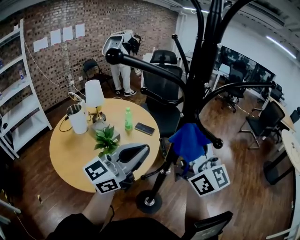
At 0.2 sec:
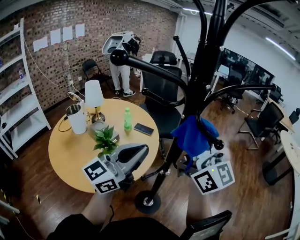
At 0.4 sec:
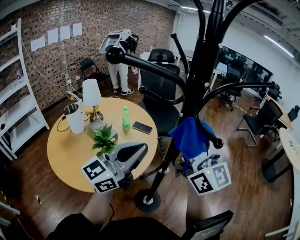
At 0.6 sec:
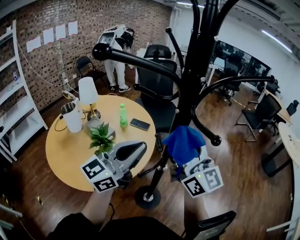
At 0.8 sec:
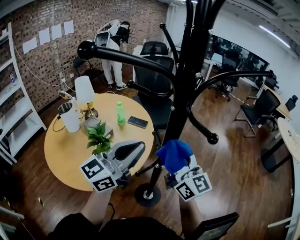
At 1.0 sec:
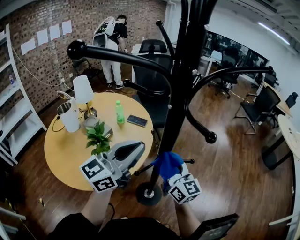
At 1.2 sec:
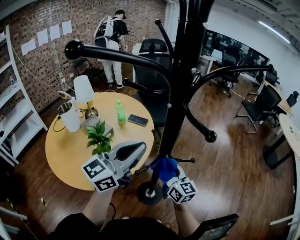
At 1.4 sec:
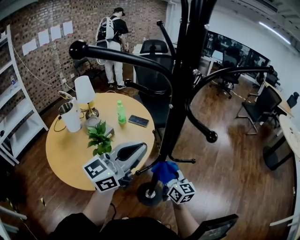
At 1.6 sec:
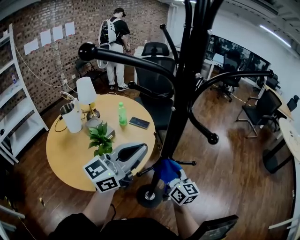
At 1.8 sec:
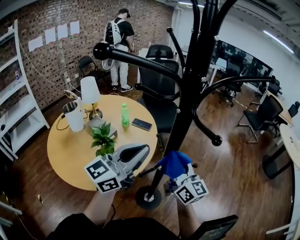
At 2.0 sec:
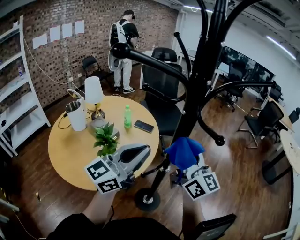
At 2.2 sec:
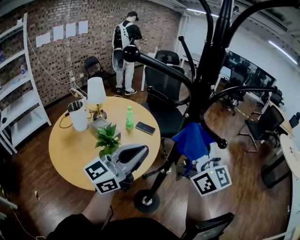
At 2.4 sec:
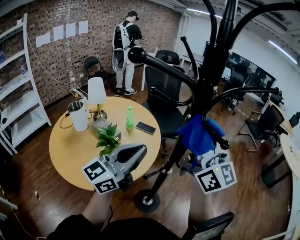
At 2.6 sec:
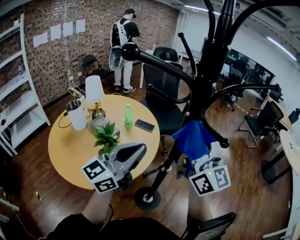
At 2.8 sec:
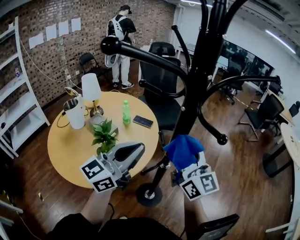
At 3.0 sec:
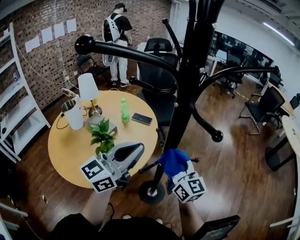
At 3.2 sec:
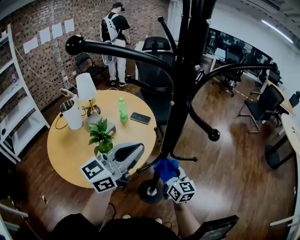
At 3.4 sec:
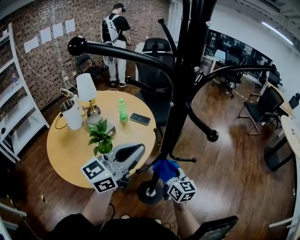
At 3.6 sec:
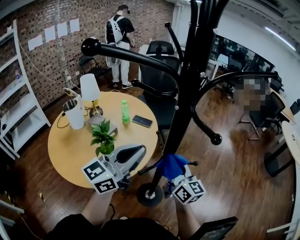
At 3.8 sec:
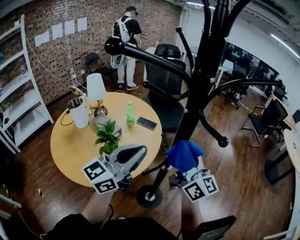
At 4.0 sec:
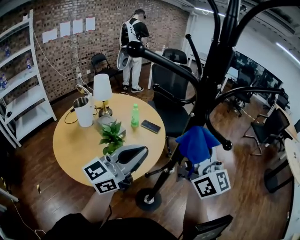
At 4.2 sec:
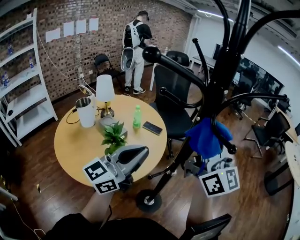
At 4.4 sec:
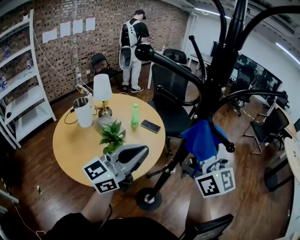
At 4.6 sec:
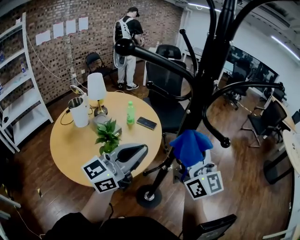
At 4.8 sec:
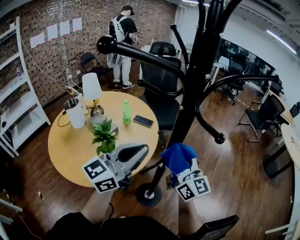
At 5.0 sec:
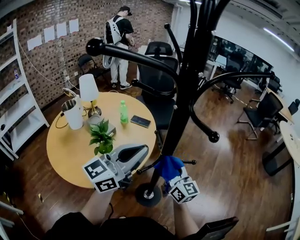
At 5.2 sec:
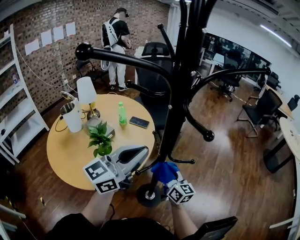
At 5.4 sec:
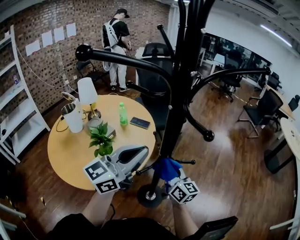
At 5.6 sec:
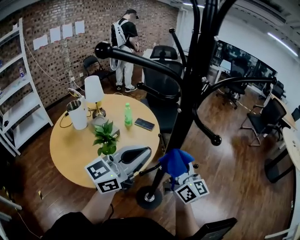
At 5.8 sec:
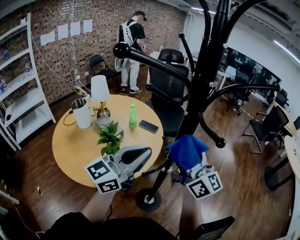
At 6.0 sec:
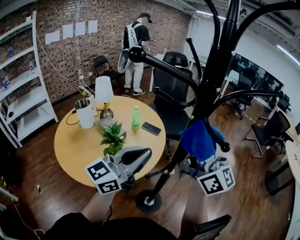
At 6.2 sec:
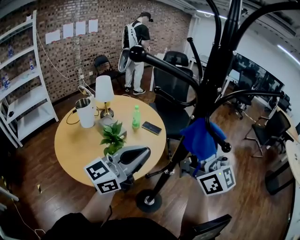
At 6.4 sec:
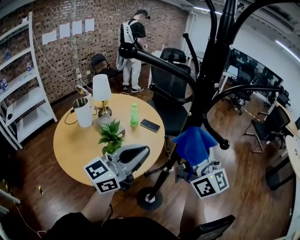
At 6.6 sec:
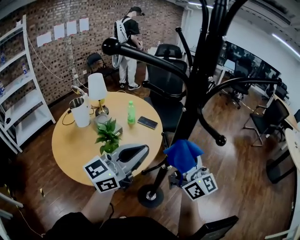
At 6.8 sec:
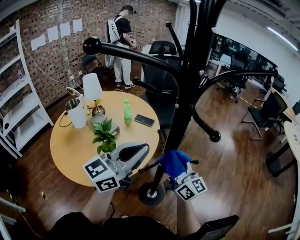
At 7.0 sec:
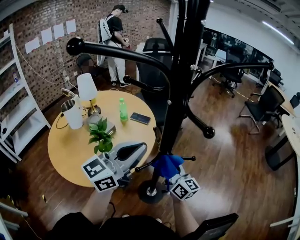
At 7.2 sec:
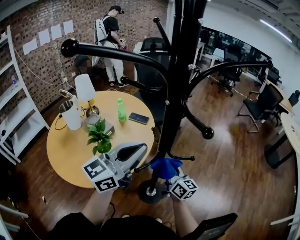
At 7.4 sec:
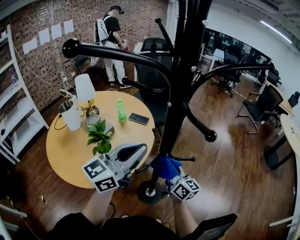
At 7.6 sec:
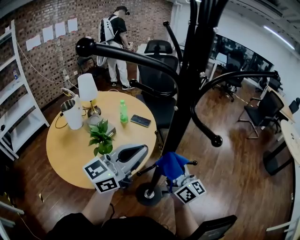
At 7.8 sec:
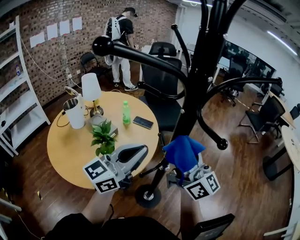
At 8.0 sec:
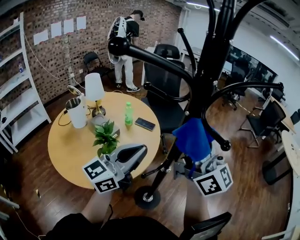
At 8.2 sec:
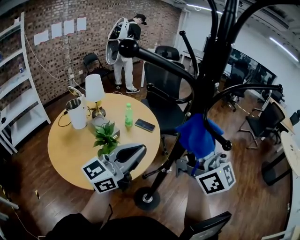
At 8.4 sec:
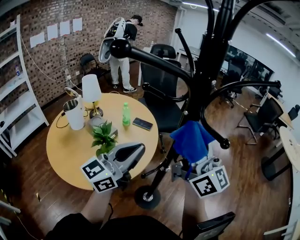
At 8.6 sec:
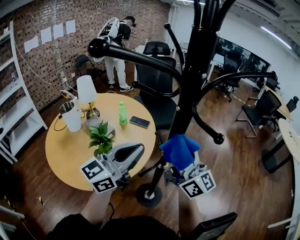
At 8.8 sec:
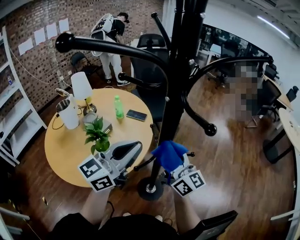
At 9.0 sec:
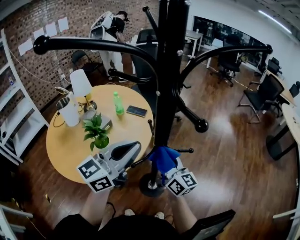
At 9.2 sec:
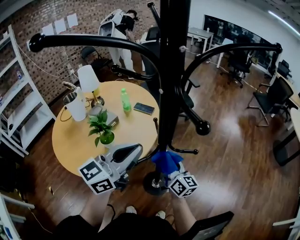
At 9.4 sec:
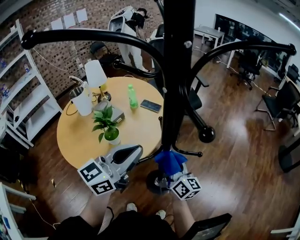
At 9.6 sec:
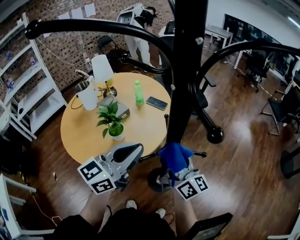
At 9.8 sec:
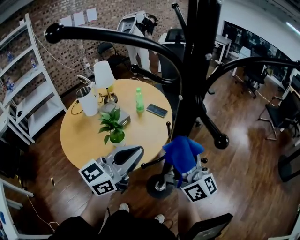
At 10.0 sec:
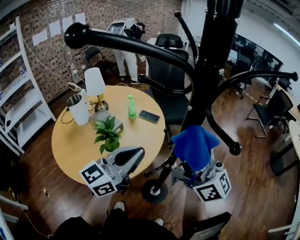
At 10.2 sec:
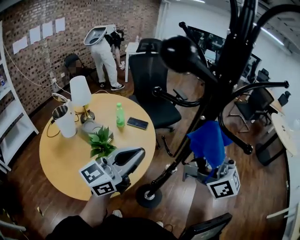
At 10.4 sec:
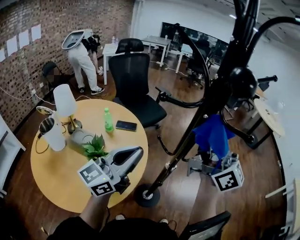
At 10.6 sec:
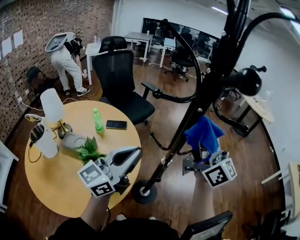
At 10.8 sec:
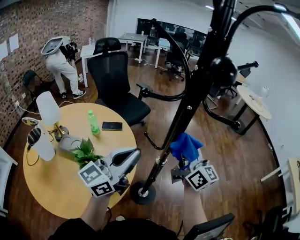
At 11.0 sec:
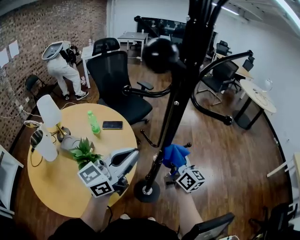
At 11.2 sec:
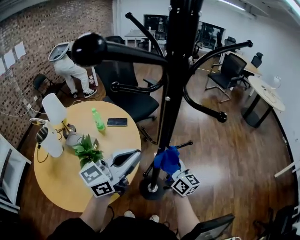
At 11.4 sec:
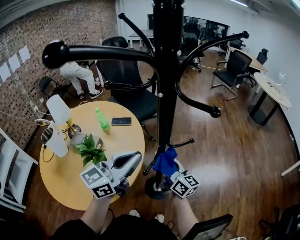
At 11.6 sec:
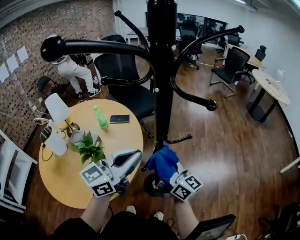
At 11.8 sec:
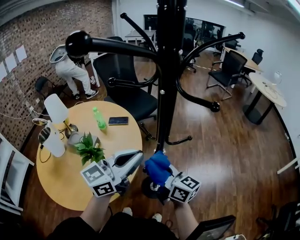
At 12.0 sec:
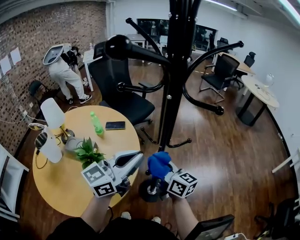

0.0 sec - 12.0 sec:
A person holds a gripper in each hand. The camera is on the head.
0.0 sec - 1.6 sec: The right gripper heads downward, covering about 25 cm, and turns by about 30 degrees.
1.6 sec - 3.0 sec: The right gripper goes upward and returns, about 30 cm each way.
3.0 sec - 4.4 sec: The right gripper travels upward by some 20 cm, and changes its angle by roughly 20 degrees.
4.4 sec - 6.0 sec: The right gripper reaches some 35 cm downward, then returns.
6.0 sec - 7.6 sec: The right gripper goes roughly 20 cm downward, and swivels about 20 degrees.
7.6 sec - 9.0 sec: The right gripper travels upward and back again, roughly 20 cm each way.
9.0 sec - 10.4 sec: The left gripper shifts approximately 10 cm to the left, while the right gripper moves upward, approximately 30 cm, and changes its angle by some 30 degrees.
10.4 sec - 12.0 sec: The right gripper heads downward, covering approximately 25 cm, and angles its fingers downward, by approximately 40 degrees, while the left gripper moves to the right, approximately 5 cm.

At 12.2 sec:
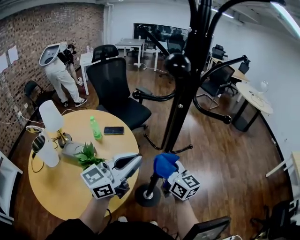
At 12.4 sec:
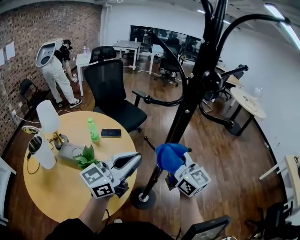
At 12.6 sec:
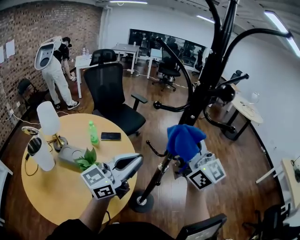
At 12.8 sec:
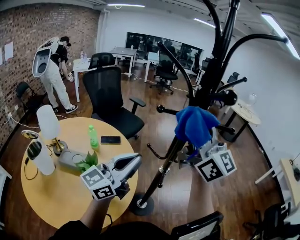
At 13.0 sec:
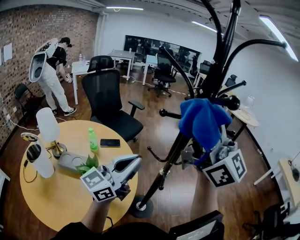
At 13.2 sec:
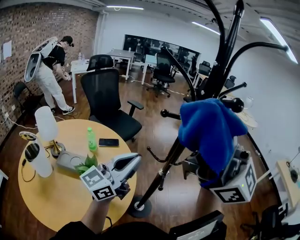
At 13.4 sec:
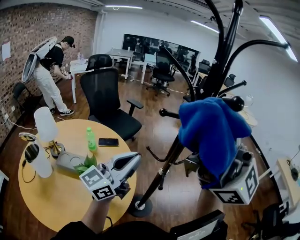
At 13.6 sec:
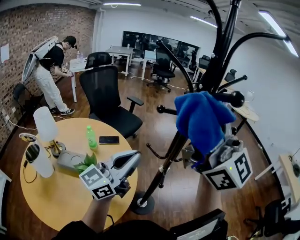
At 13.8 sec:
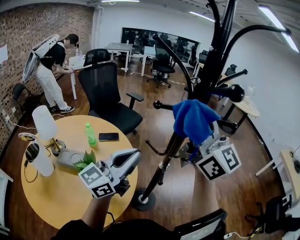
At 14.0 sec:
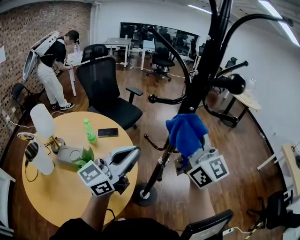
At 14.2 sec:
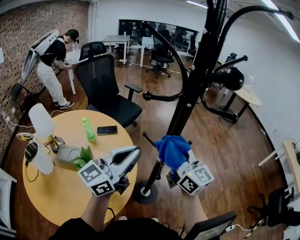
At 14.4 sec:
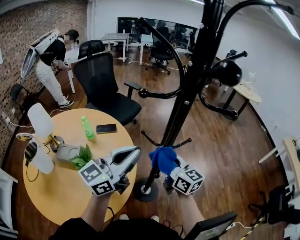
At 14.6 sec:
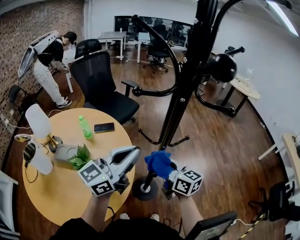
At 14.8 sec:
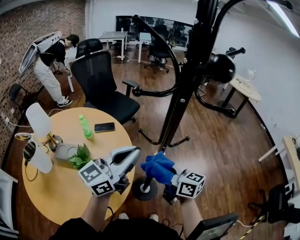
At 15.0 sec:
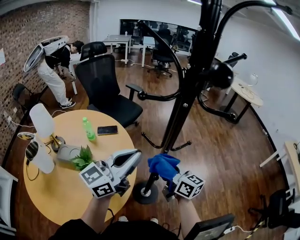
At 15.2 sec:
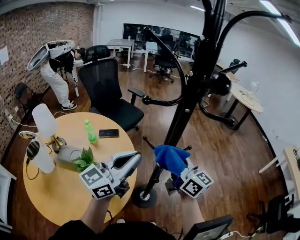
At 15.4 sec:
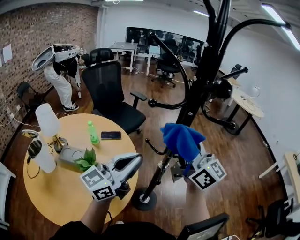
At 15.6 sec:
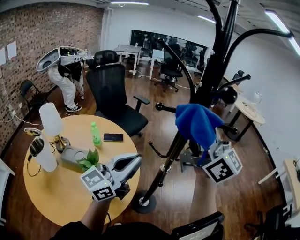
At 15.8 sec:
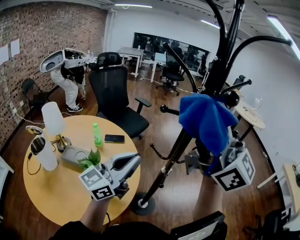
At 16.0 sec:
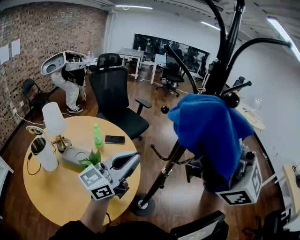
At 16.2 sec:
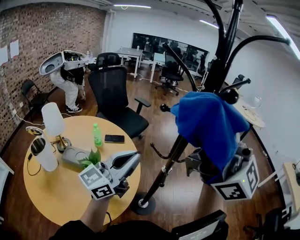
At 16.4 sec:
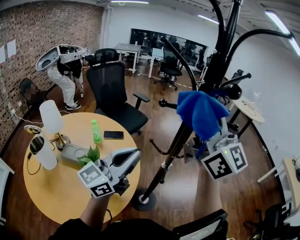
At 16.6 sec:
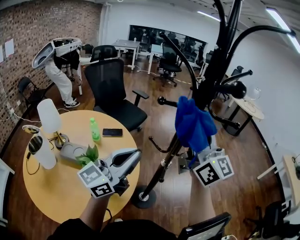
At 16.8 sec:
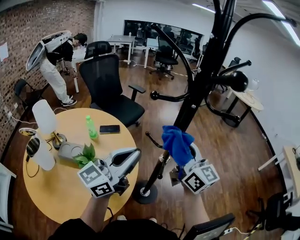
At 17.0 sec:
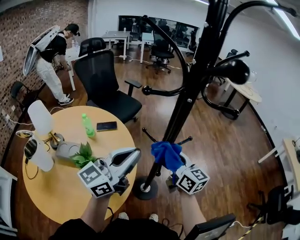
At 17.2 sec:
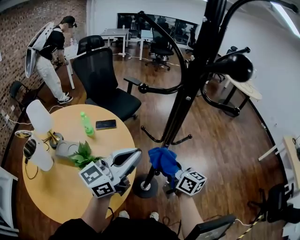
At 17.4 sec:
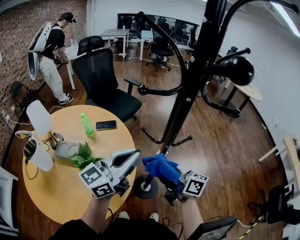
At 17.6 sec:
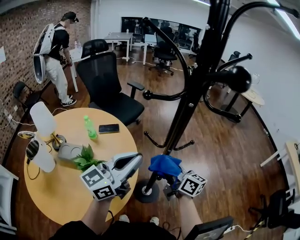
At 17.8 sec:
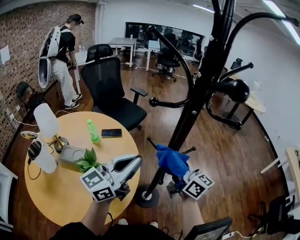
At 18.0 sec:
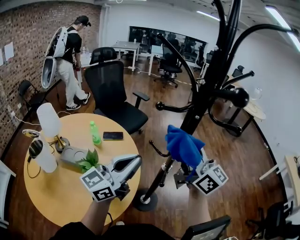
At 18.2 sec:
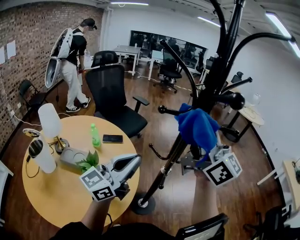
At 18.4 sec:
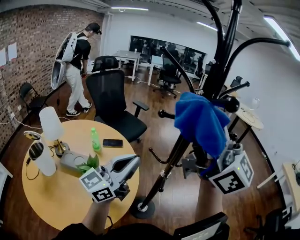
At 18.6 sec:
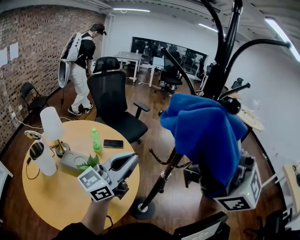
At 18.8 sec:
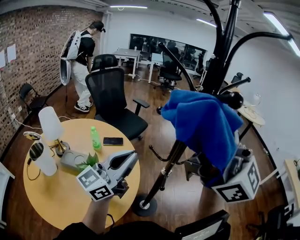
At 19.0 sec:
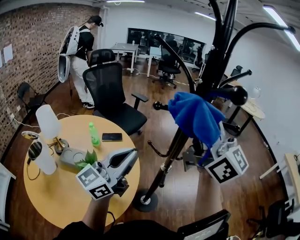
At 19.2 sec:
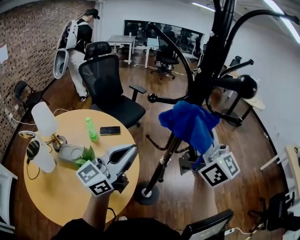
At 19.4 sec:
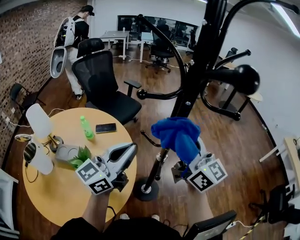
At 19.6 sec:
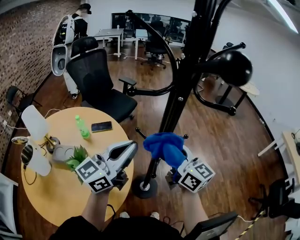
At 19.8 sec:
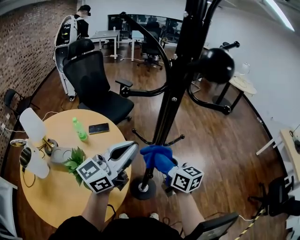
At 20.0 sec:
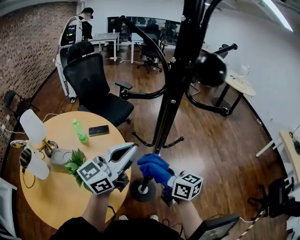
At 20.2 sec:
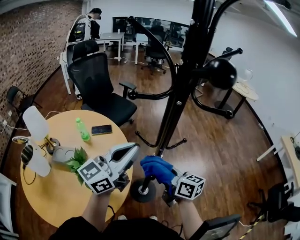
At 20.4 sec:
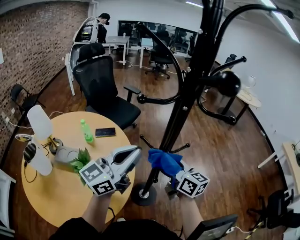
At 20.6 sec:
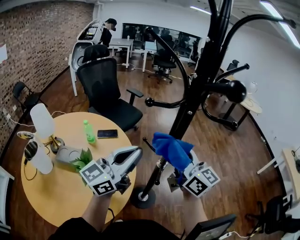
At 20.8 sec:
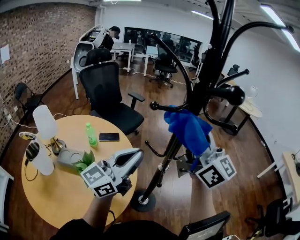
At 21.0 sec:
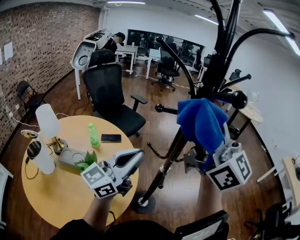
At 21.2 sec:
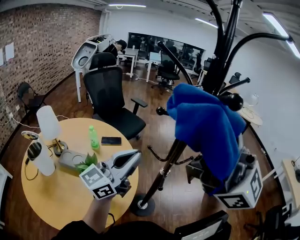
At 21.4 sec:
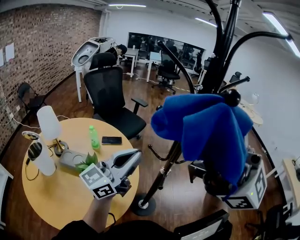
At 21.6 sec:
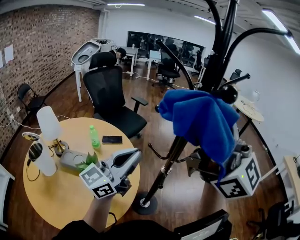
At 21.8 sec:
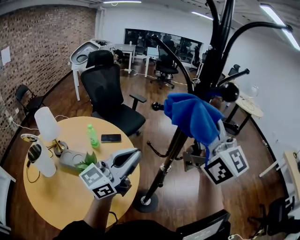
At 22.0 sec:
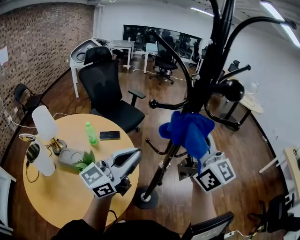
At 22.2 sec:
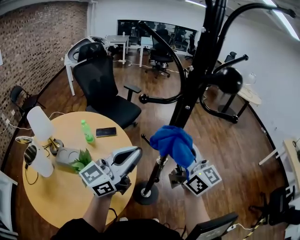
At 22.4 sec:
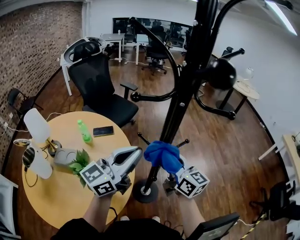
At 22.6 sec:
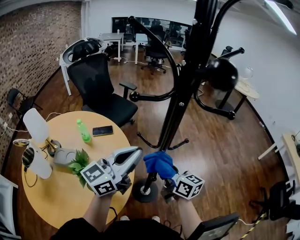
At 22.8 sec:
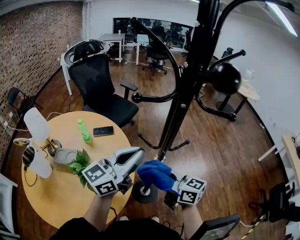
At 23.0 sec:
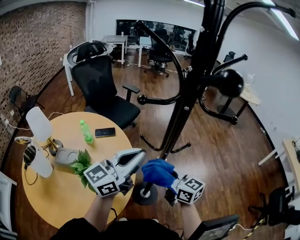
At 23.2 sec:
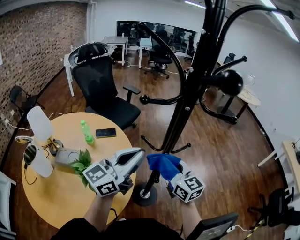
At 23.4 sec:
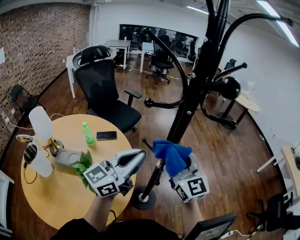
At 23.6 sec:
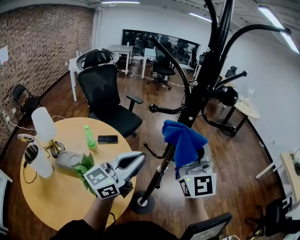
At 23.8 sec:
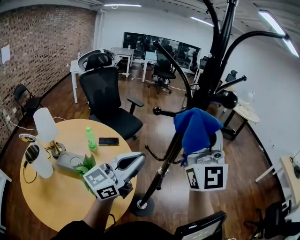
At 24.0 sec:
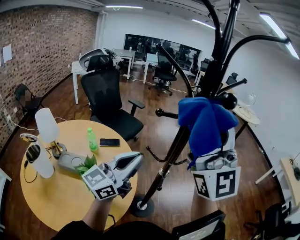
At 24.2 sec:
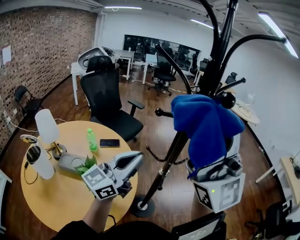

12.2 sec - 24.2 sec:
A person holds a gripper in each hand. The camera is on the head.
12.2 sec - 13.8 sec: The right gripper goes about 30 cm upward, and turns by some 30 degrees; the left gripper shifts by roughly 5 cm.
13.8 sec - 15.2 sec: The right gripper is displaced downward by about 25 cm, and rotates approximately 30 degrees.
15.2 sec - 16.6 sec: The right gripper is displaced upward by roughly 15 cm, and swivels about 20 degrees.
16.6 sec - 18.2 sec: The right gripper moves approximately 30 cm downward and comes back.
18.2 sec - 19.8 sec: The left gripper travels to the right by roughly 5 cm. The right gripper heads downward, covering approximately 30 cm, and points its fingers about 40 degrees further downward.
19.8 sec - 21.2 sec: The right gripper is displaced upward by some 40 cm, and tips its fingers upward by about 50 degrees, while the left gripper heads to the left, covering some 5 cm.
21.2 sec - 22.6 sec: The left gripper ends up approximately 5 cm from where it was. The right gripper travels downward by approximately 40 cm, and angles its fingers downward, by roughly 40 degrees.
22.6 sec - 24.2 sec: The right gripper shifts about 40 cm upward, and points its fingers roughly 50 degrees further upward. Meanwhile the left gripper ends up about 5 cm from where it was.
